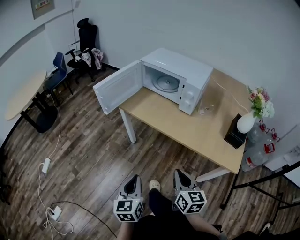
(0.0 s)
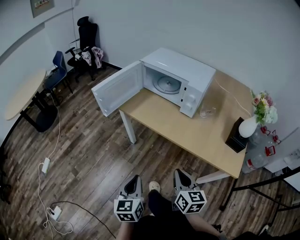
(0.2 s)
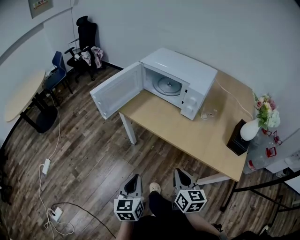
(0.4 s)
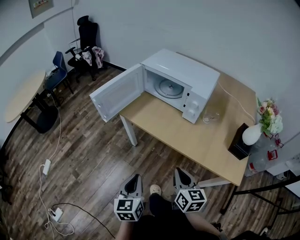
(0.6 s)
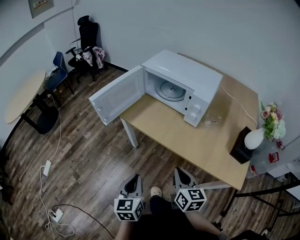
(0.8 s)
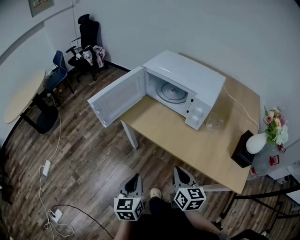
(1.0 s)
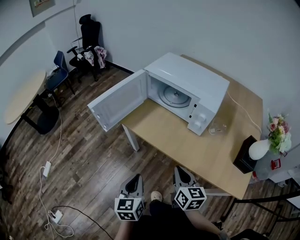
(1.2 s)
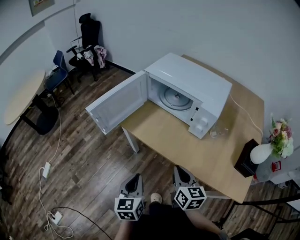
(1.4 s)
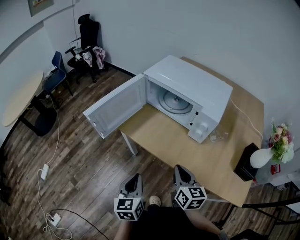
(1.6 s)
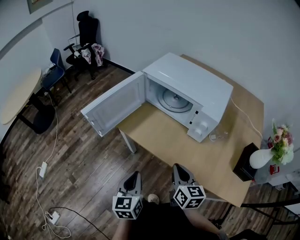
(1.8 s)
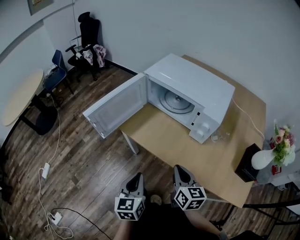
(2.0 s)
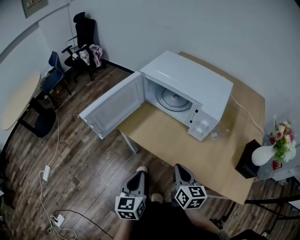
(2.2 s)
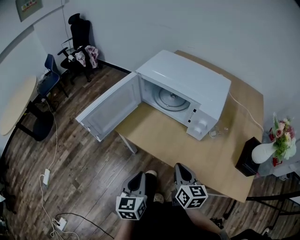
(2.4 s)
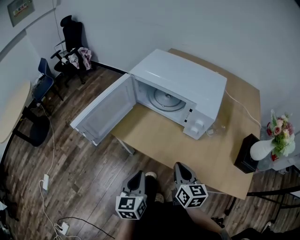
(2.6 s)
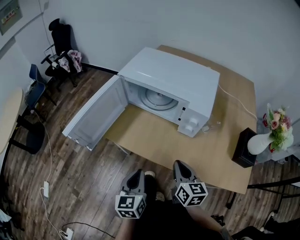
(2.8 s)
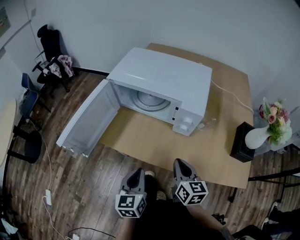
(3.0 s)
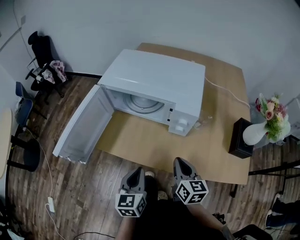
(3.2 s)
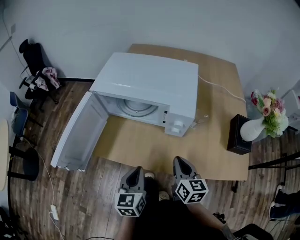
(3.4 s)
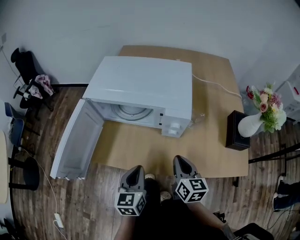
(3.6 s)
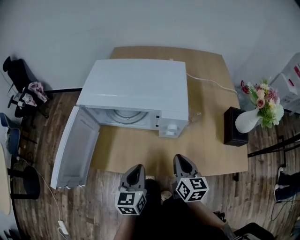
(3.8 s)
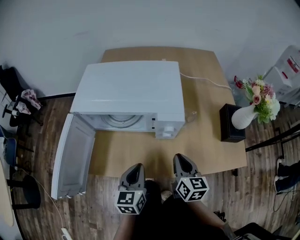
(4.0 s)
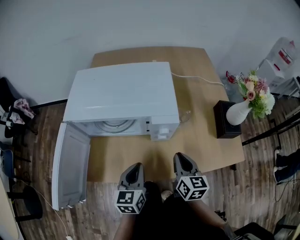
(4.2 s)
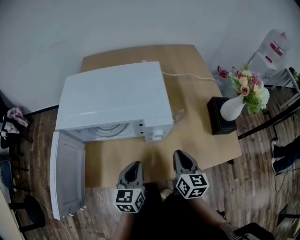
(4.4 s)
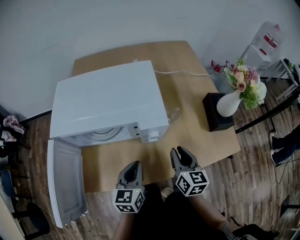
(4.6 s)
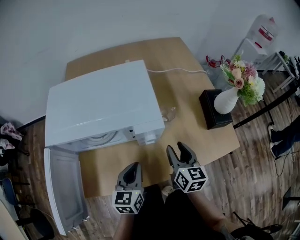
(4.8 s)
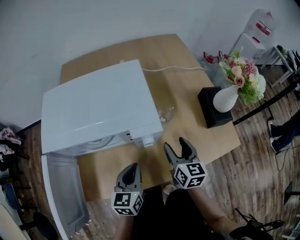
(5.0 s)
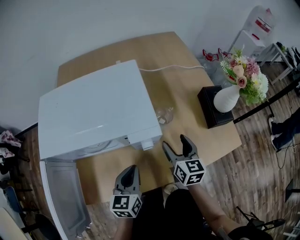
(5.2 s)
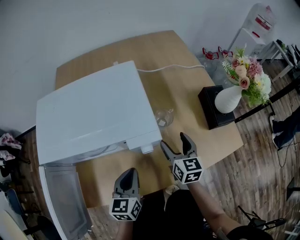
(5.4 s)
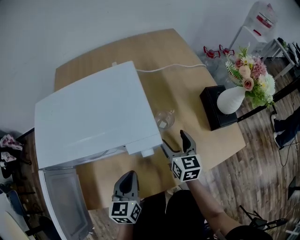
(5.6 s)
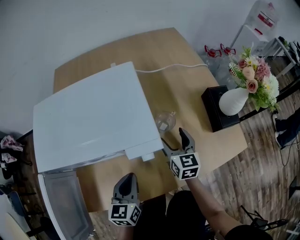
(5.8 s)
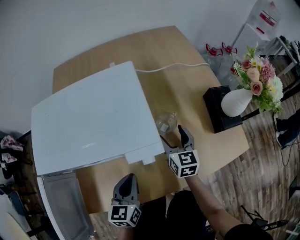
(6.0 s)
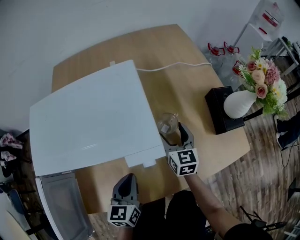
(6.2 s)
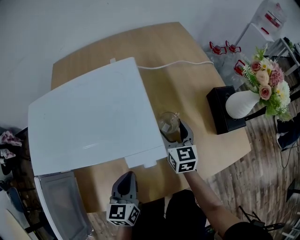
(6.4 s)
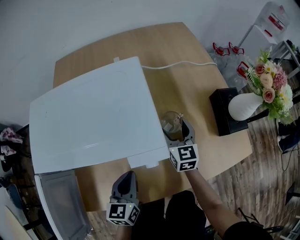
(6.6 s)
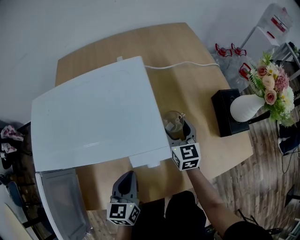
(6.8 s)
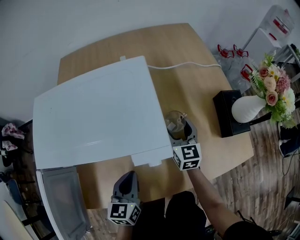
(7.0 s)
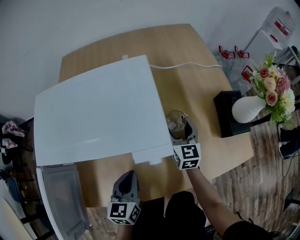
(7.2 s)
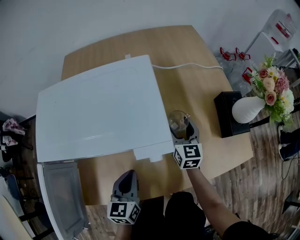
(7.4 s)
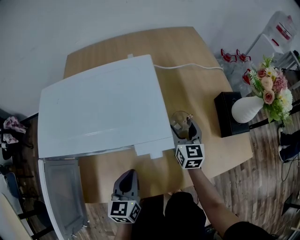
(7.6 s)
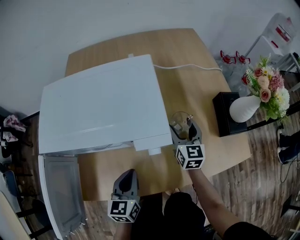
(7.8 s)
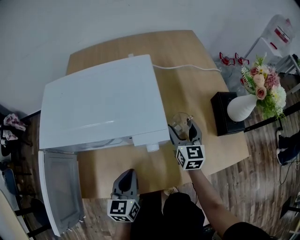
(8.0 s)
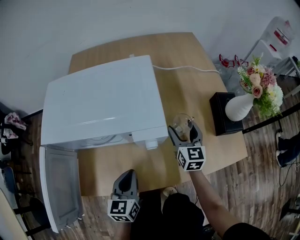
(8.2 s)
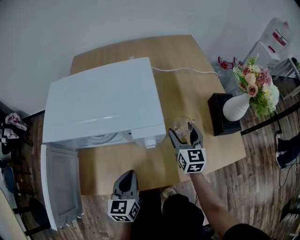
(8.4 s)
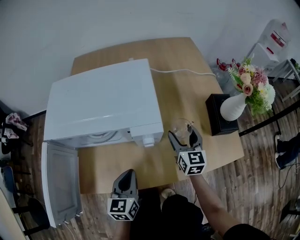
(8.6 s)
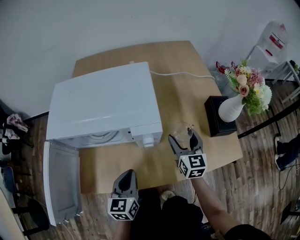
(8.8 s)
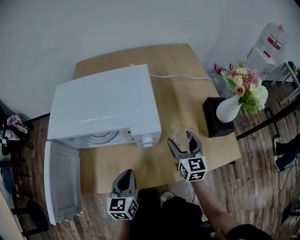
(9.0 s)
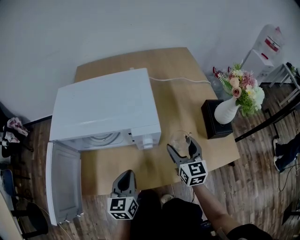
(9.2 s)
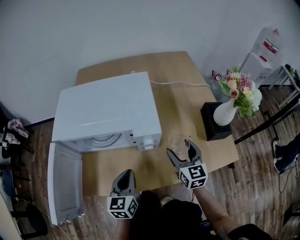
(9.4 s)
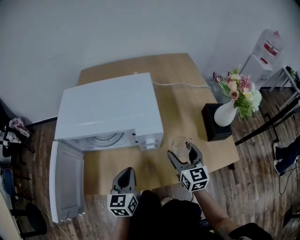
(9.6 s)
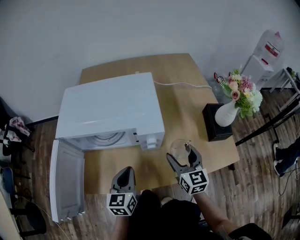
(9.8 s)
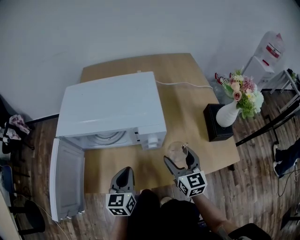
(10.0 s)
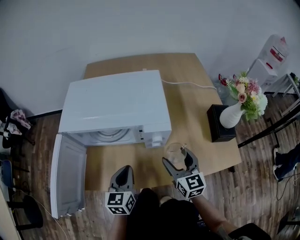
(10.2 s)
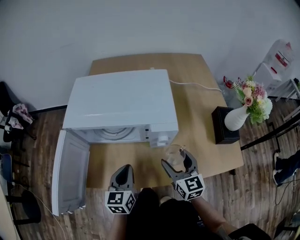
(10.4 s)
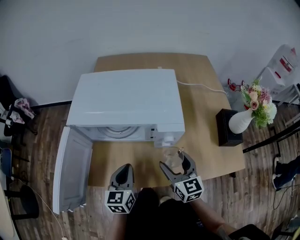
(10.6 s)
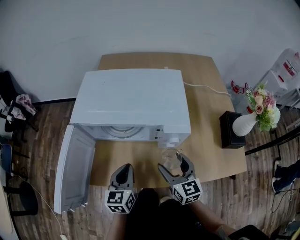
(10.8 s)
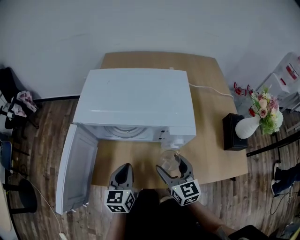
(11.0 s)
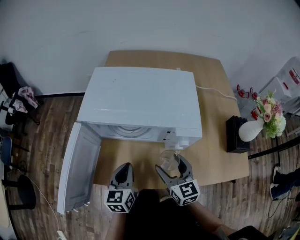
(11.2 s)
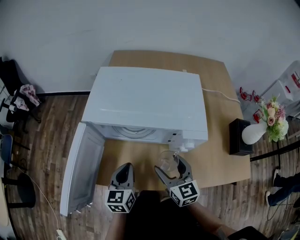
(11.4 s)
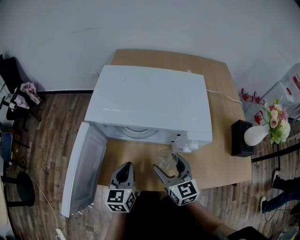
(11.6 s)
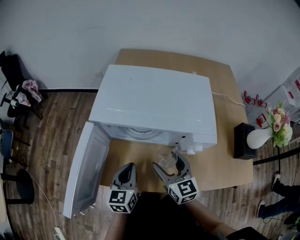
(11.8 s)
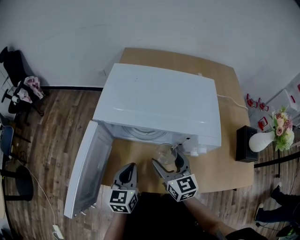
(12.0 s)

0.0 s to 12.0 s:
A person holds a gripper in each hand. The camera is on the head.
0.0 to 1.6 s: The two grippers go roughly 25 cm forward.
1.6 to 3.0 s: The right gripper travels to the right by roughly 5 cm; the left gripper travels forward and to the right by about 10 cm.
3.0 to 4.4 s: The left gripper shifts by roughly 15 cm, and turns by some 30 degrees. Meanwhile the right gripper shifts by approximately 10 cm, and swivels roughly 30 degrees.
4.4 to 6.0 s: The left gripper moves forward, roughly 5 cm; the right gripper travels forward and downward by about 20 cm, and opens up.
6.0 to 7.6 s: The grippers make only small movements.
7.6 to 9.0 s: The left gripper goes roughly 5 cm backward. Meanwhile the right gripper moves backward and upward, approximately 10 cm.
9.0 to 10.4 s: The right gripper moves to the left and backward, about 10 cm, while the left gripper heads to the left, covering about 5 cm.
10.4 to 12.0 s: The left gripper shifts some 10 cm to the left. Meanwhile the right gripper is displaced to the left and forward by some 20 cm.

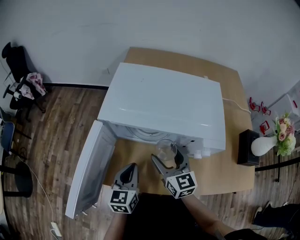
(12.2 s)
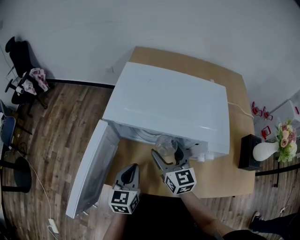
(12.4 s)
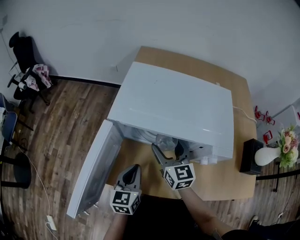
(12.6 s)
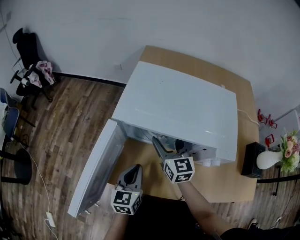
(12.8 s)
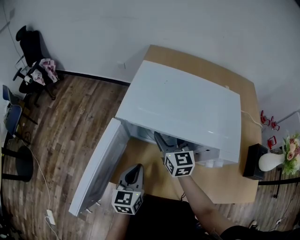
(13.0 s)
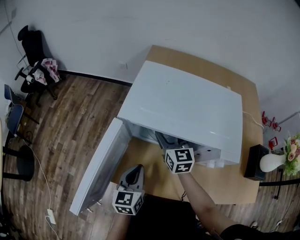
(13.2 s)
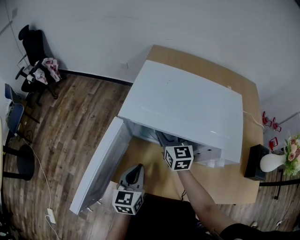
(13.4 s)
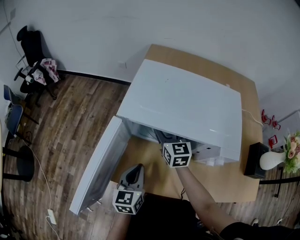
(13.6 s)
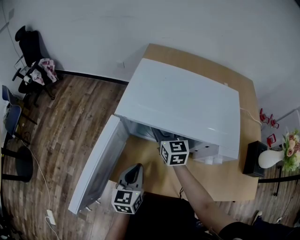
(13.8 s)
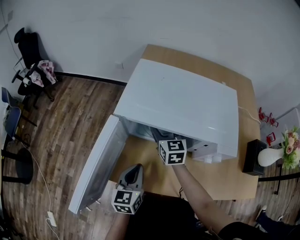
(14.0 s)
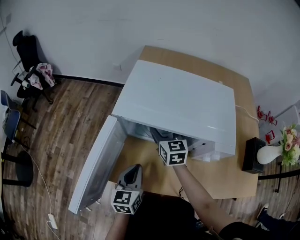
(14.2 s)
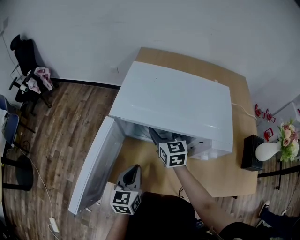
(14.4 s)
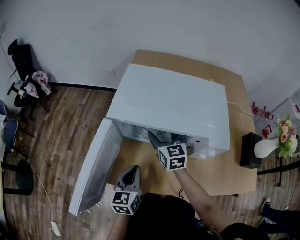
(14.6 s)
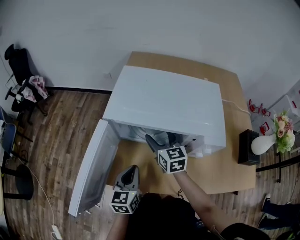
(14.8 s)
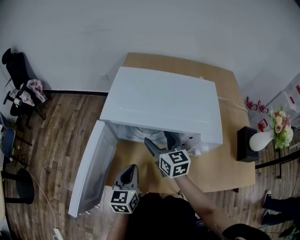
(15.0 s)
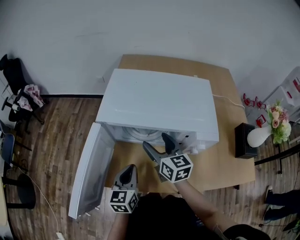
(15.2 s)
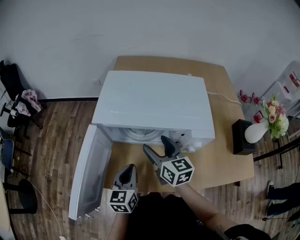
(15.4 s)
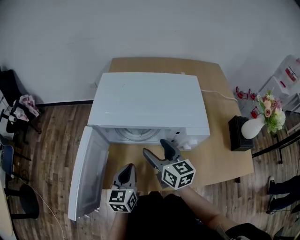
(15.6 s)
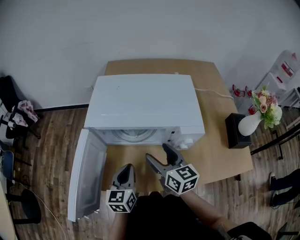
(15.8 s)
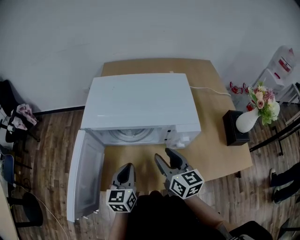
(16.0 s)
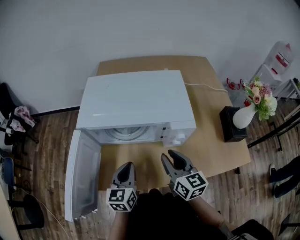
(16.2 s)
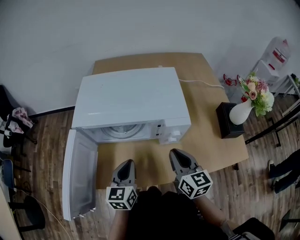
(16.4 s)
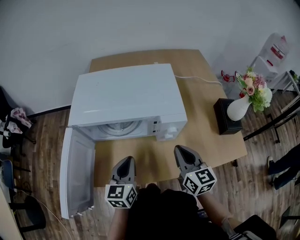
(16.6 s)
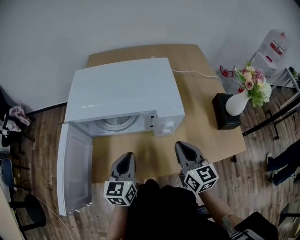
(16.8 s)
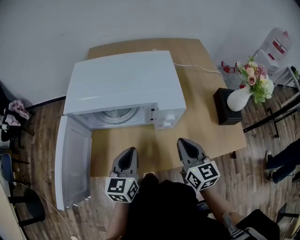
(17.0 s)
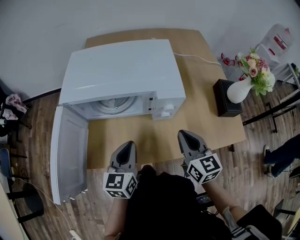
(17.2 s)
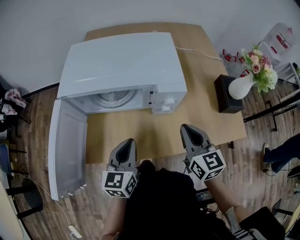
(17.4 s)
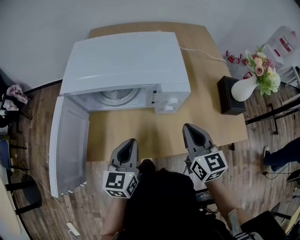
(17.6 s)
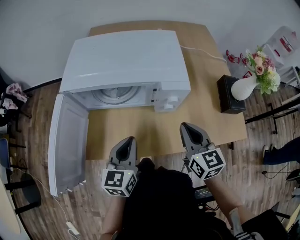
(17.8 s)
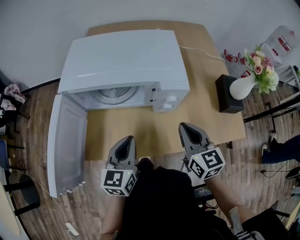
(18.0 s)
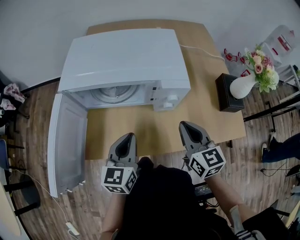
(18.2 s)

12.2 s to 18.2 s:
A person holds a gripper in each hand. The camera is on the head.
12.2 to 13.8 s: The right gripper goes approximately 15 cm forward.
13.8 to 15.2 s: The right gripper goes some 10 cm backward.
15.2 to 16.6 s: The right gripper heads to the right and backward, covering some 25 cm, and closes up, while the left gripper heads to the right, covering roughly 10 cm.
16.6 to 18.2 s: The grippers stay close to where they were, moving slightly.

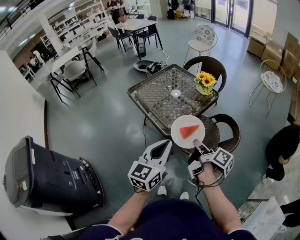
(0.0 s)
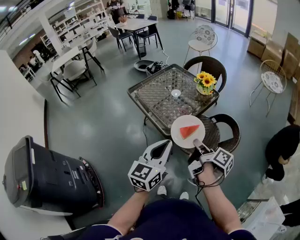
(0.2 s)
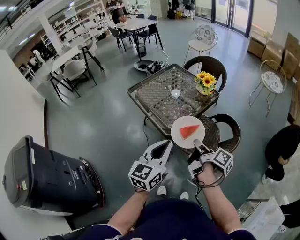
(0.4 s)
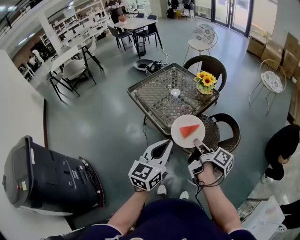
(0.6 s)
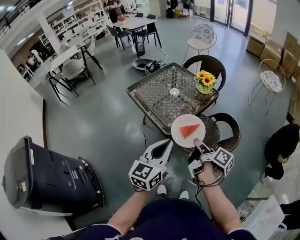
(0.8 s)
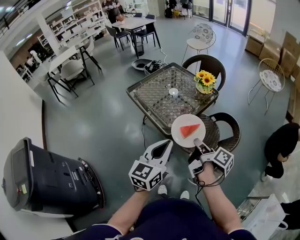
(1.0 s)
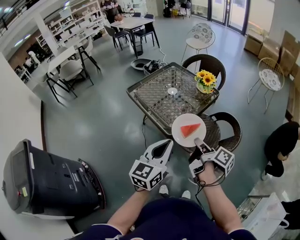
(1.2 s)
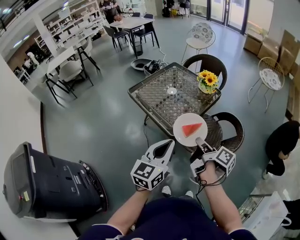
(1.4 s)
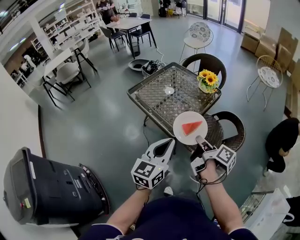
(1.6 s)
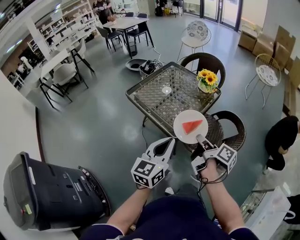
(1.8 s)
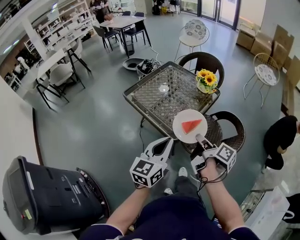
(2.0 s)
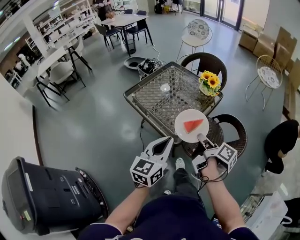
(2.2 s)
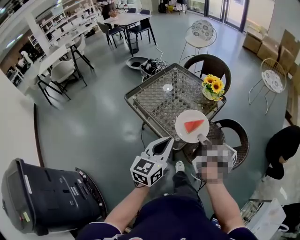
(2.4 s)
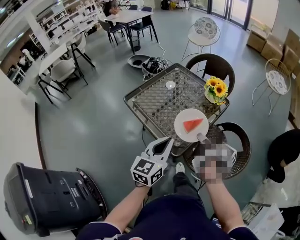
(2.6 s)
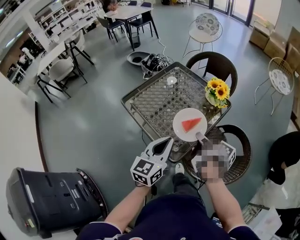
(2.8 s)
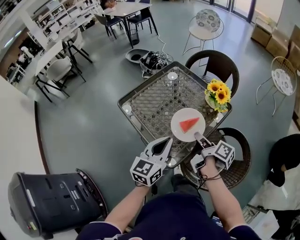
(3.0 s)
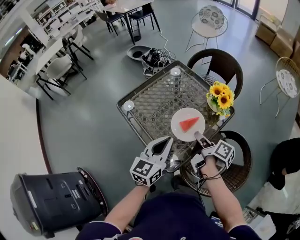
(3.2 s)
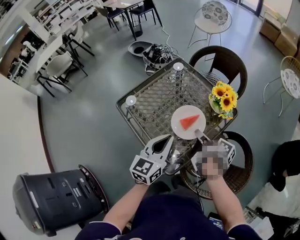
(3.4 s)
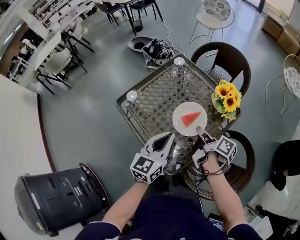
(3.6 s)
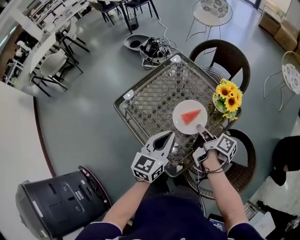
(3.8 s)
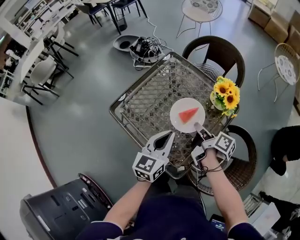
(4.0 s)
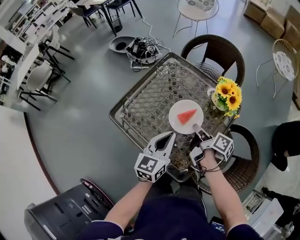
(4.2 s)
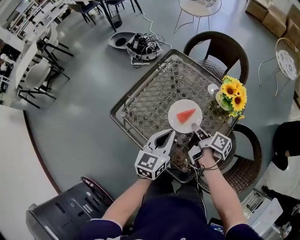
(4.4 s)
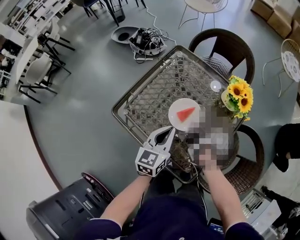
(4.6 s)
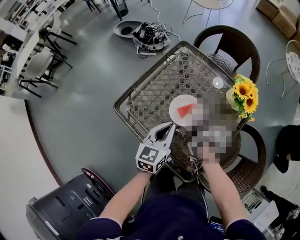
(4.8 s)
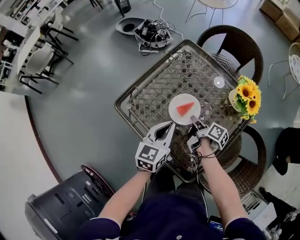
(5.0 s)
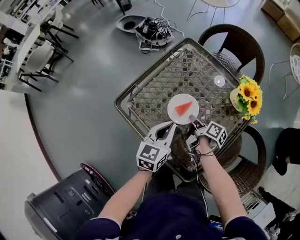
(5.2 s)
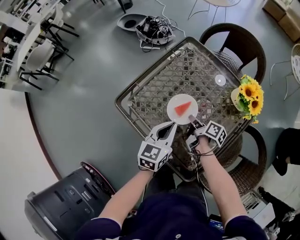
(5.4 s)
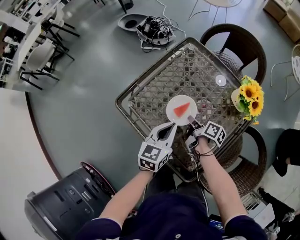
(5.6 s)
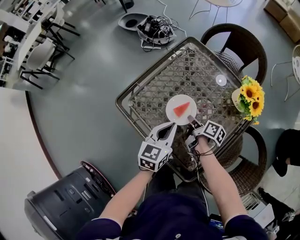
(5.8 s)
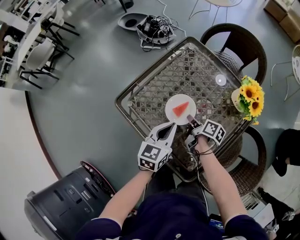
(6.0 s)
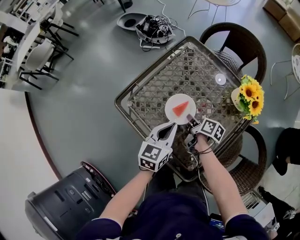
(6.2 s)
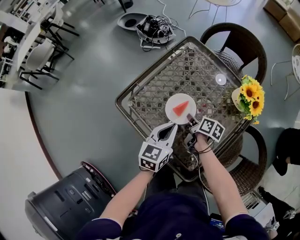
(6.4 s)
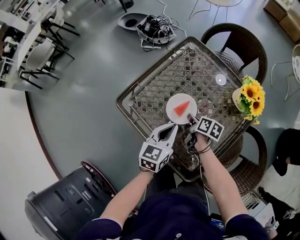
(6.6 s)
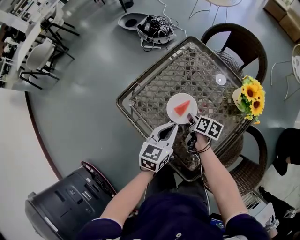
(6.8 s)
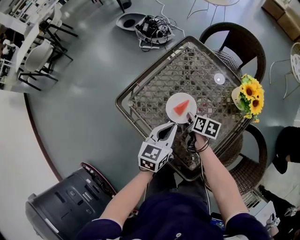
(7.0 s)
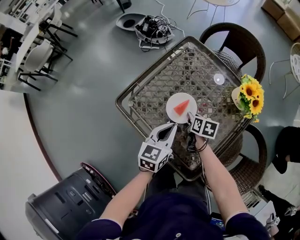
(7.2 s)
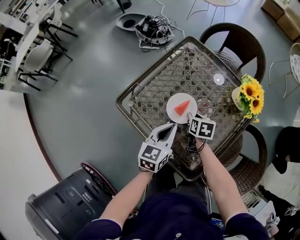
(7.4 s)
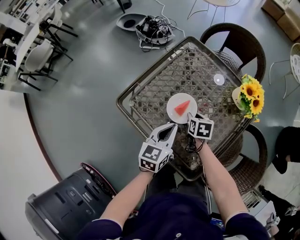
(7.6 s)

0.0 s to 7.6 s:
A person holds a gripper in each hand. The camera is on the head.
0.0 to 1.6 s: The two grippers go some 5 cm to the left.
1.6 to 3.0 s: The two grippers go some 25 cm forward.
3.0 to 4.6 s: The left gripper travels forward and downward by approximately 20 cm. Meanwhile the right gripper goes some 25 cm forward, downward and to the left.
4.6 to 6.0 s: The left gripper changes place by about 5 cm. Meanwhile the right gripper shifts some 10 cm downward and to the left.
6.0 to 7.6 s: The right gripper rotates around the line of its fingers by roughly 40 degrees, counterclockwise from behind, and opens its fingers.
